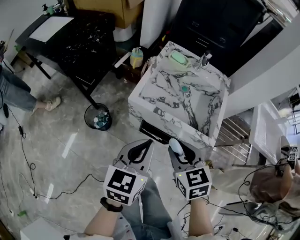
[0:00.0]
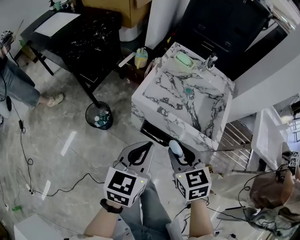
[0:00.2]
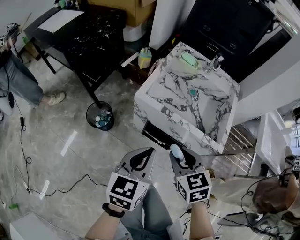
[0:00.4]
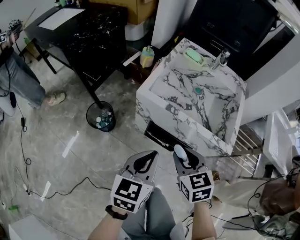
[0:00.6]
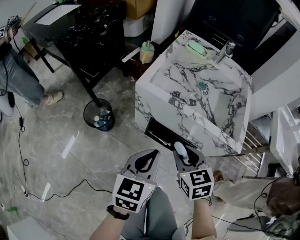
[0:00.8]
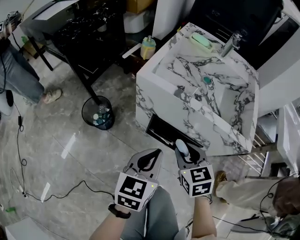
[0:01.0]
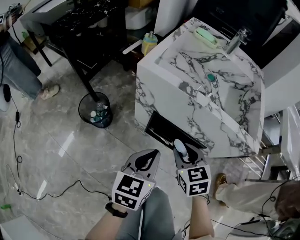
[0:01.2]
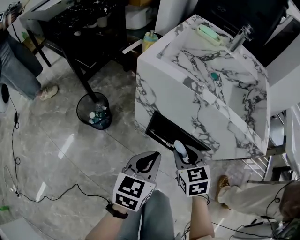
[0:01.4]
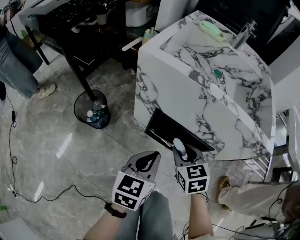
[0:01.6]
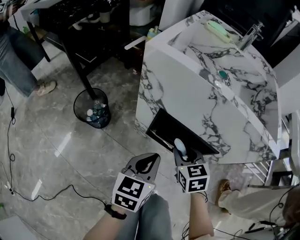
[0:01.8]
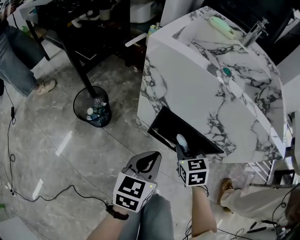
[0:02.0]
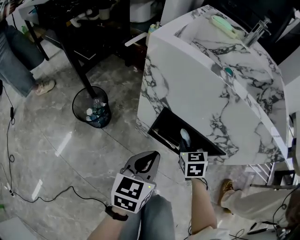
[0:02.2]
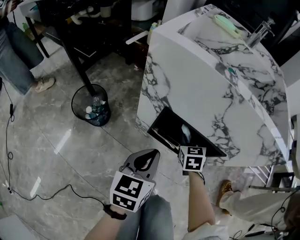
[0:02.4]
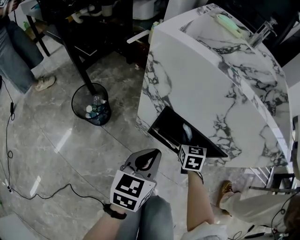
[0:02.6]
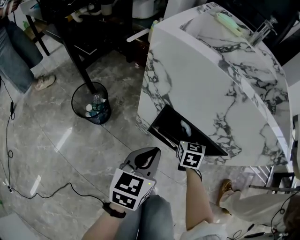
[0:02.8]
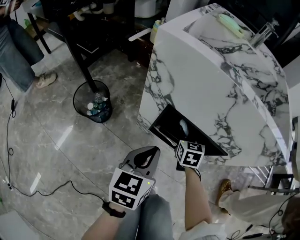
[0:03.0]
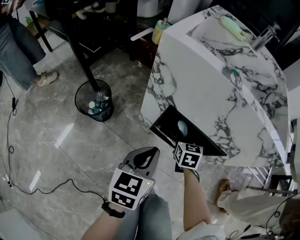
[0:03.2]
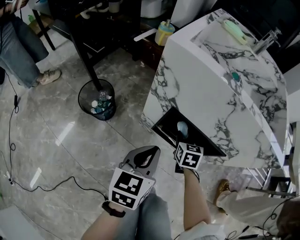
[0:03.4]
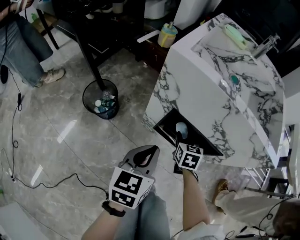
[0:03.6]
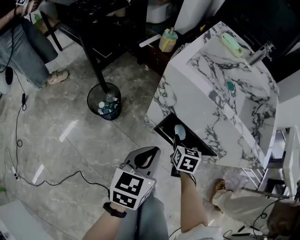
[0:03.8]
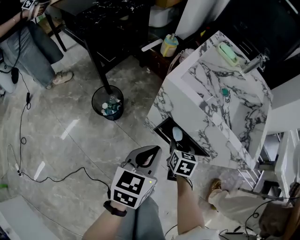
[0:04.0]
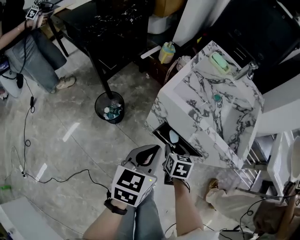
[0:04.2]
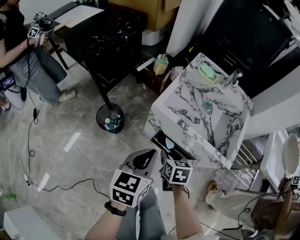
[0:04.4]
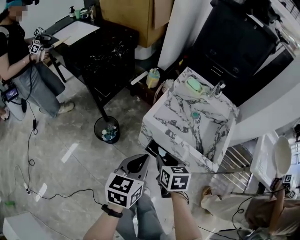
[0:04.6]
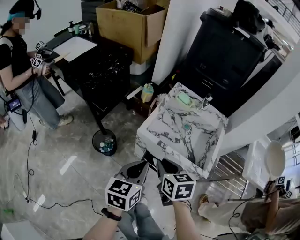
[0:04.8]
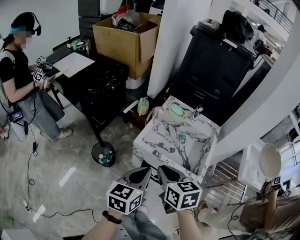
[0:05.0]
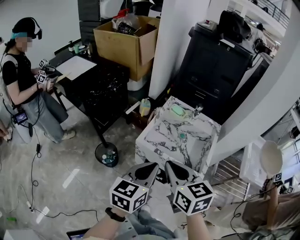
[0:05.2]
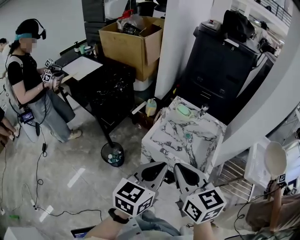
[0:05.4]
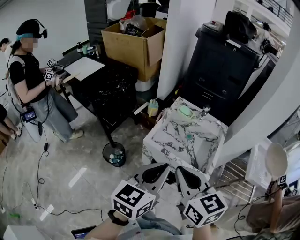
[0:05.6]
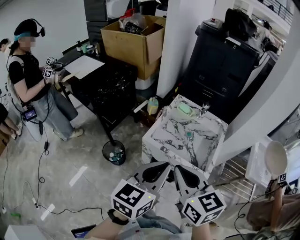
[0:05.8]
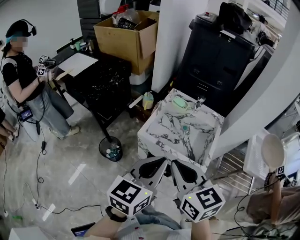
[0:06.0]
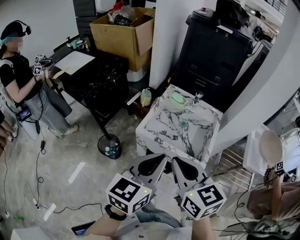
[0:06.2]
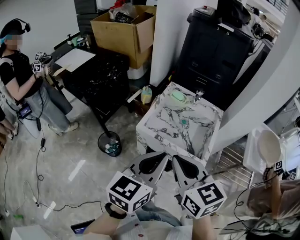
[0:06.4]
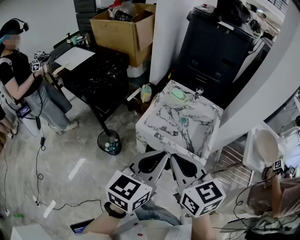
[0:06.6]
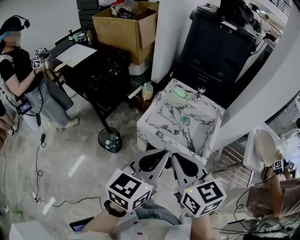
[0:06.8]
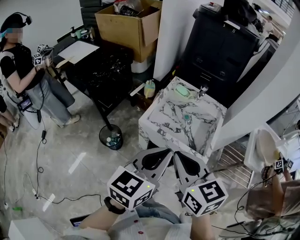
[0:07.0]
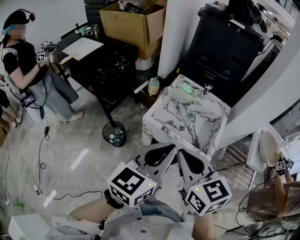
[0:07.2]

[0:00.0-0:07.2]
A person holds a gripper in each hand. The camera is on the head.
0:00.0 to 0:01.4: Both grippers move downward, about 30 cm.
0:01.4 to 0:02.8: The left gripper moves downward, approximately 10 cm. Meanwhile the right gripper goes some 20 cm downward and forward.
0:02.8 to 0:04.4: The left gripper travels upward by some 30 cm. The right gripper moves upward and backward, about 30 cm, and changes its angle by approximately 20 degrees.
0:04.4 to 0:05.8: The left gripper heads upward, covering about 25 cm, and swivels approximately 20 degrees. Meanwhile the right gripper is displaced upward by roughly 40 cm, angles its fingers upward, by about 30 degrees, and closes.
0:05.8 to 0:07.2: The grippers move only a little.

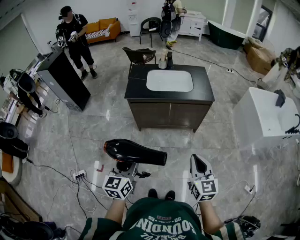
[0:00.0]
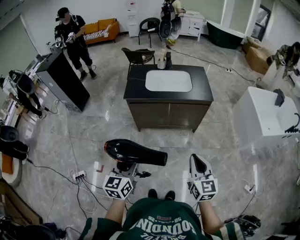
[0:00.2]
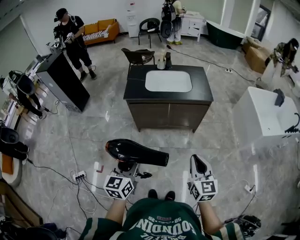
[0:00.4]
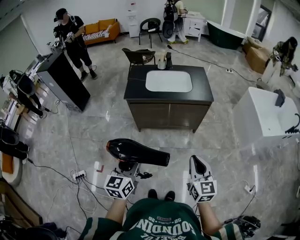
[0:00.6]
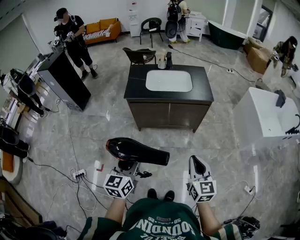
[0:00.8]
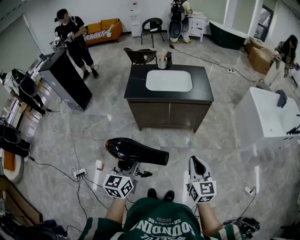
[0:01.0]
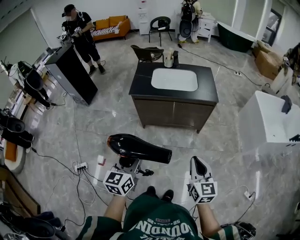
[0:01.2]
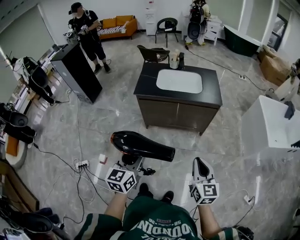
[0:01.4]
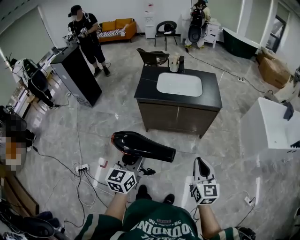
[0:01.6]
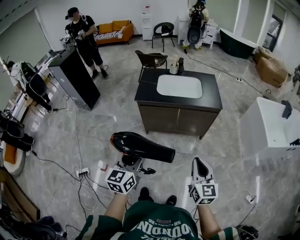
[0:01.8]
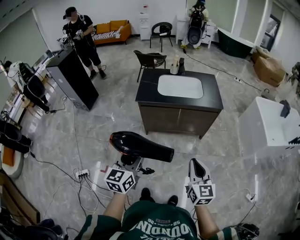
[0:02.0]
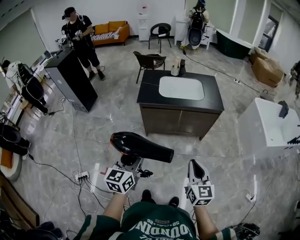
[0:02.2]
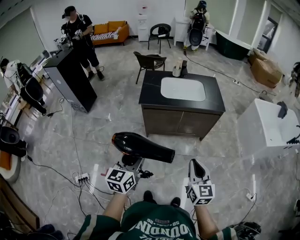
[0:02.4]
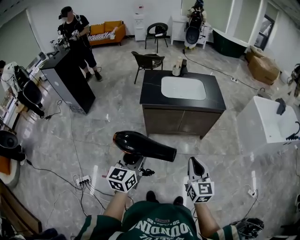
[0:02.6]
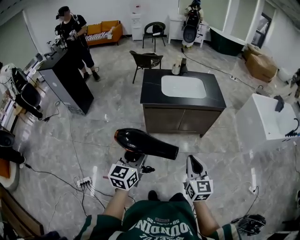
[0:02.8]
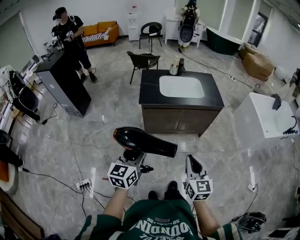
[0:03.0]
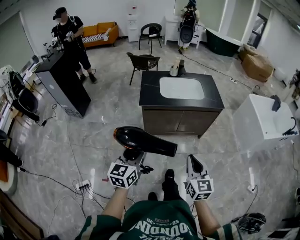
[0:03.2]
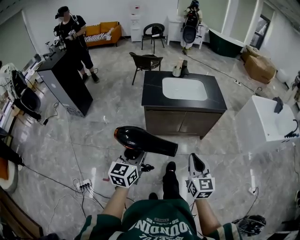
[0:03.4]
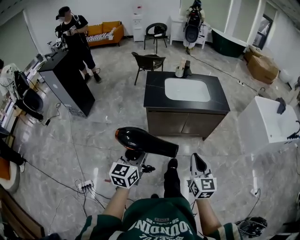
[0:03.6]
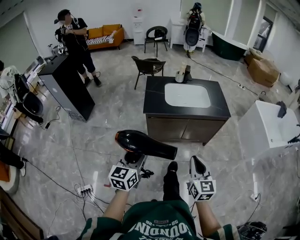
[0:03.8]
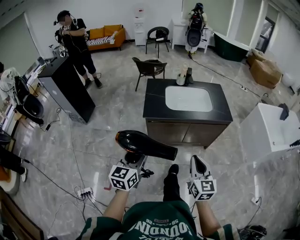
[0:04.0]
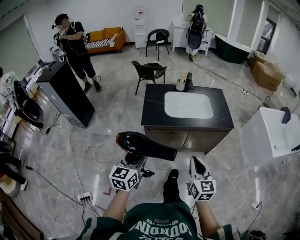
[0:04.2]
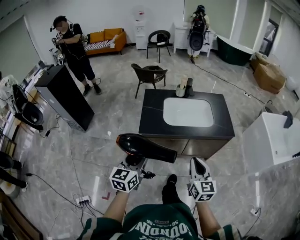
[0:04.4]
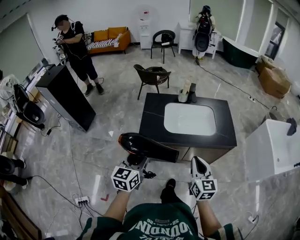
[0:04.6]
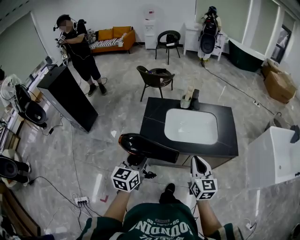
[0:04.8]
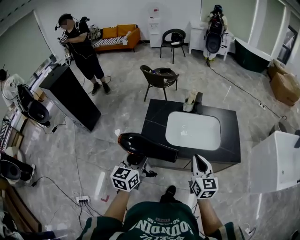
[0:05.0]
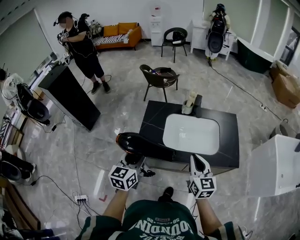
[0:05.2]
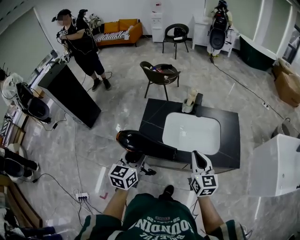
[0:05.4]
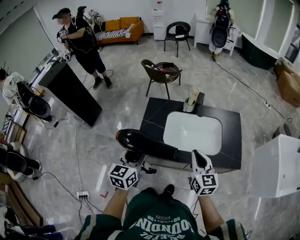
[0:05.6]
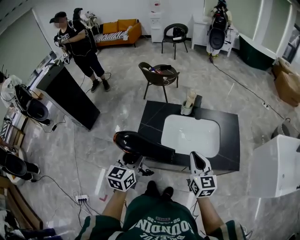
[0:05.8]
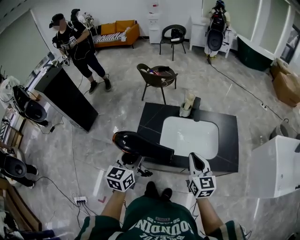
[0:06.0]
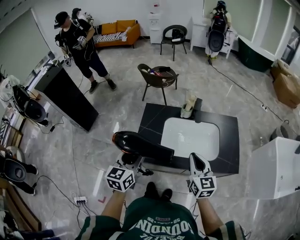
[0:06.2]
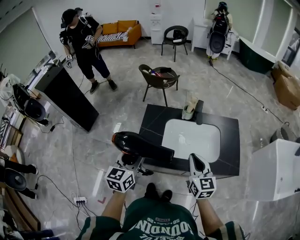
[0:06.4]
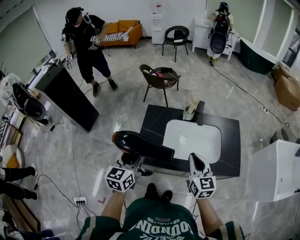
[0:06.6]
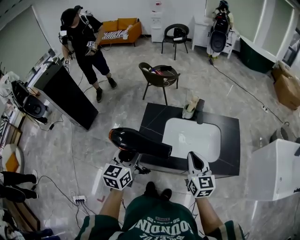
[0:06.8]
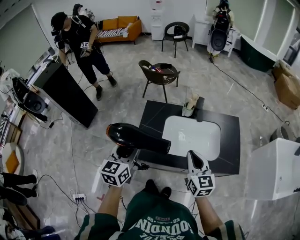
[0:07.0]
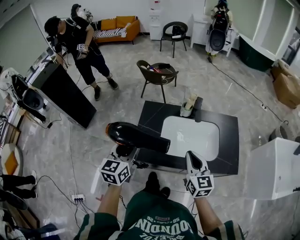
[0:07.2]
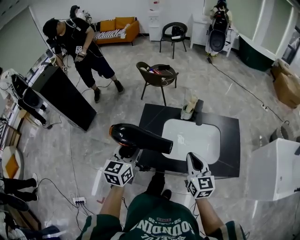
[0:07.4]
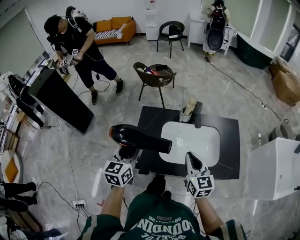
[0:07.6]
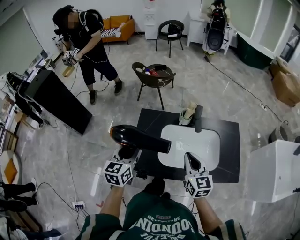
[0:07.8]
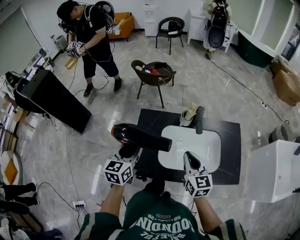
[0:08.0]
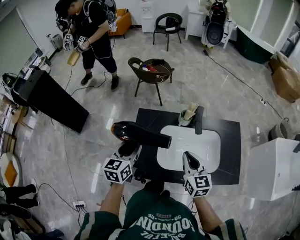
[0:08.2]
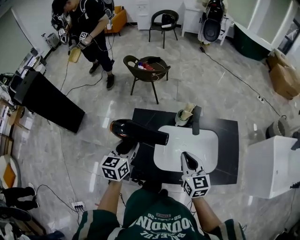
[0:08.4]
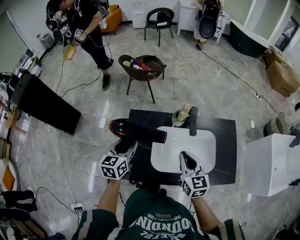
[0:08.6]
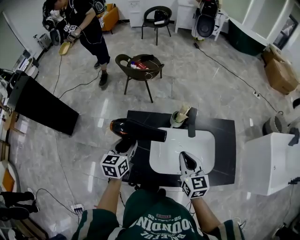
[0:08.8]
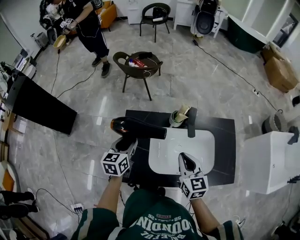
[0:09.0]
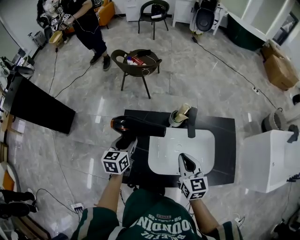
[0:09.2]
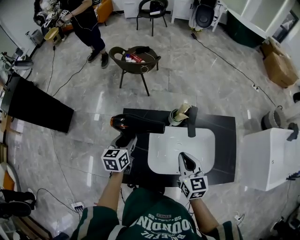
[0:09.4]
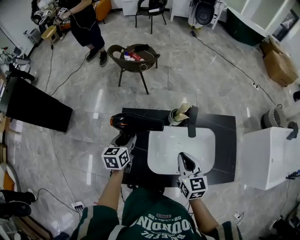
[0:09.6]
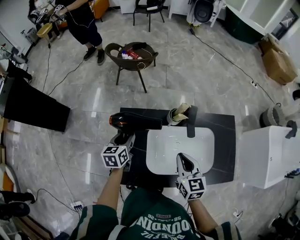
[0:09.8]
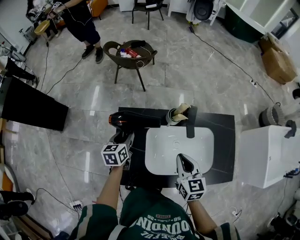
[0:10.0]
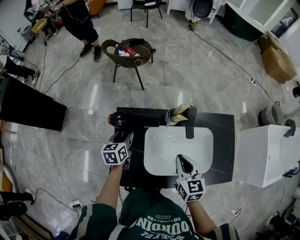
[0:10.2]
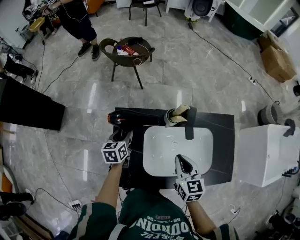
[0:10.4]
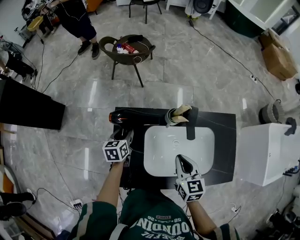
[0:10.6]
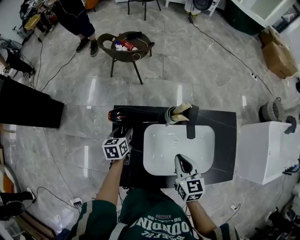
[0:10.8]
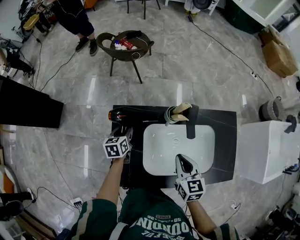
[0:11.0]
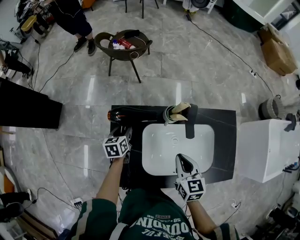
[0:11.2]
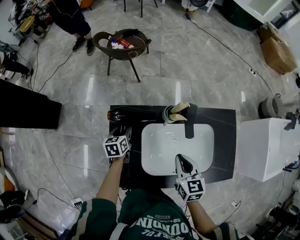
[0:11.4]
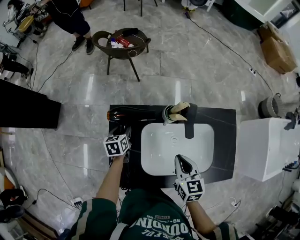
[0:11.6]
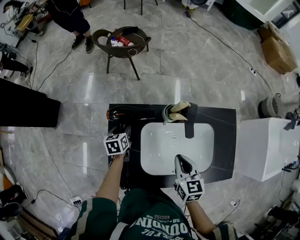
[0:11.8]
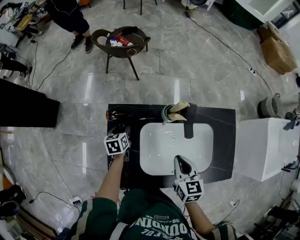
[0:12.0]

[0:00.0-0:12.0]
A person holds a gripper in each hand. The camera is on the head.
0:00.0 to 0:01.6: There are only small adjustments of the grippers.
0:01.6 to 0:03.0: The grippers both shift to the left by about 20 cm.
0:03.0 to 0:04.4: Both grippers travel together forward, about 25 cm.
0:04.4 to 0:06.0: The grippers both shift forward by approximately 30 cm.
0:06.0 to 0:07.6: The grippers both shift forward by about 10 cm.
0:07.6 to 0:09.0: The left gripper goes some 20 cm forward and downward. Meanwhile the right gripper goes some 15 cm forward and downward.
0:09.0 to 0:10.4: The right gripper shifts about 5 cm downward. Meanwhile the left gripper moves downward and forward, about 15 cm.
0:10.4 to 0:12.0: The left gripper is displaced downward by roughly 10 cm.

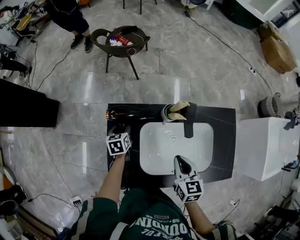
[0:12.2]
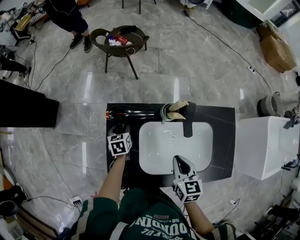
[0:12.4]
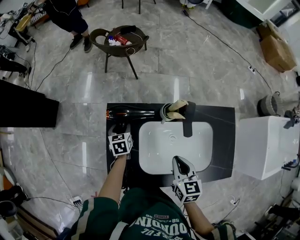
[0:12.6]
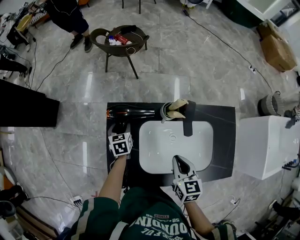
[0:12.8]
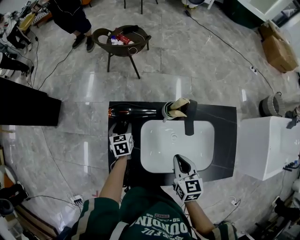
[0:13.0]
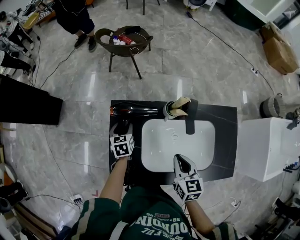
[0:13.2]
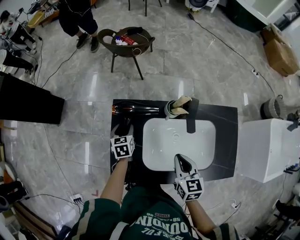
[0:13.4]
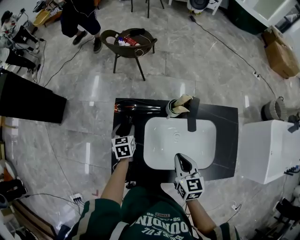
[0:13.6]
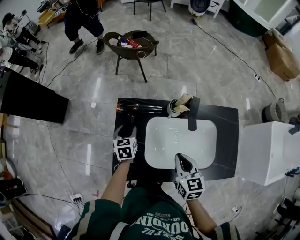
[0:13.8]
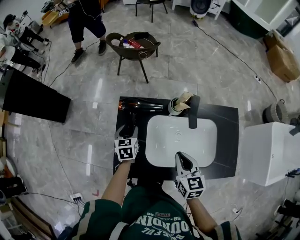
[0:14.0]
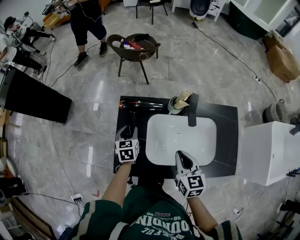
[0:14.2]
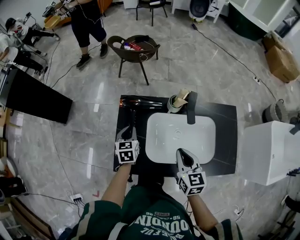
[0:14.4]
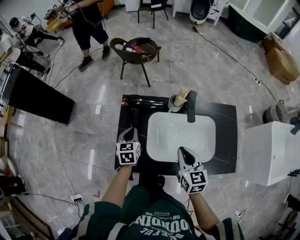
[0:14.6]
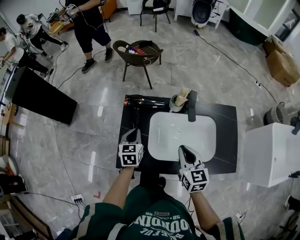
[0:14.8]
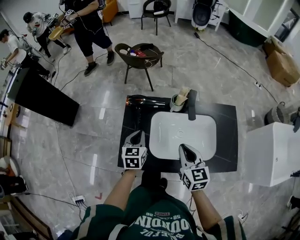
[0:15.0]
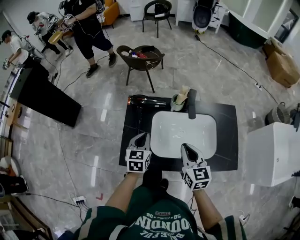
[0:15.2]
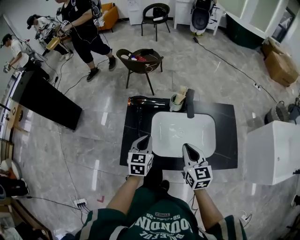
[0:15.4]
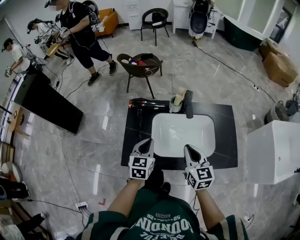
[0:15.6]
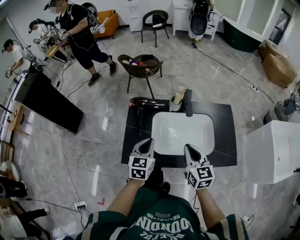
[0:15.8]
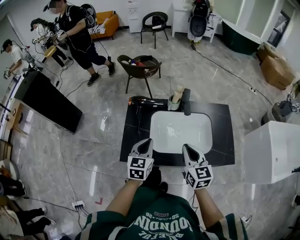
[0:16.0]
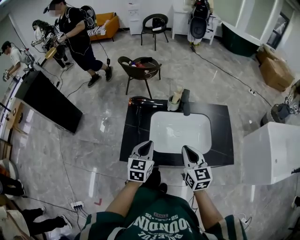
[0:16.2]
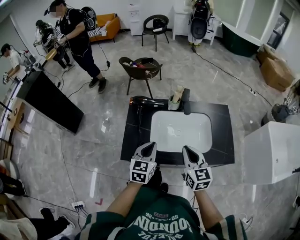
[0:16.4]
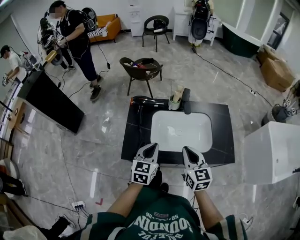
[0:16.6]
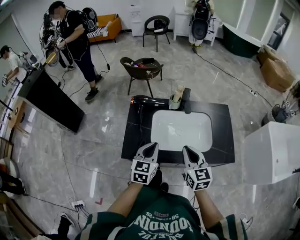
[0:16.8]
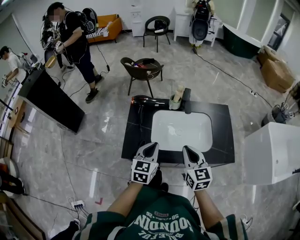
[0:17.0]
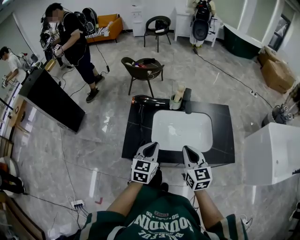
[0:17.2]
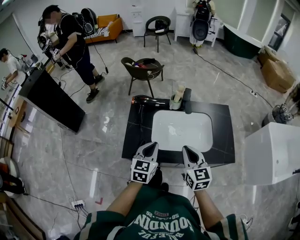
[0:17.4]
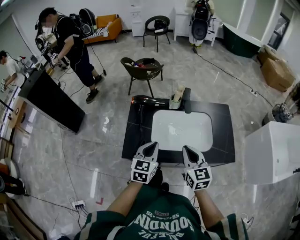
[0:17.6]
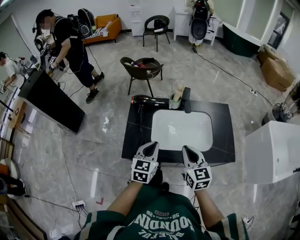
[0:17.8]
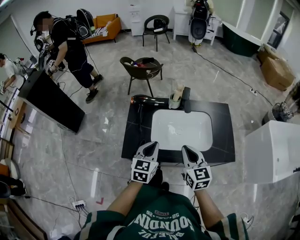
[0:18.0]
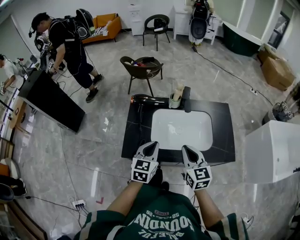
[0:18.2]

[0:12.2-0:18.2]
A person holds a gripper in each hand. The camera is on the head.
0:12.2 to 0:13.8: The left gripper is displaced backward by roughly 5 cm.
0:13.8 to 0:15.2: The left gripper is displaced backward, upward and to the right by roughly 20 cm, and closes. The right gripper travels upward and backward by approximately 10 cm.
0:15.2 to 0:16.6: The left gripper travels backward, upward and to the right by some 15 cm; the right gripper goes approximately 10 cm backward.
0:16.6 to 0:18.2: The two grippers keep their place.
